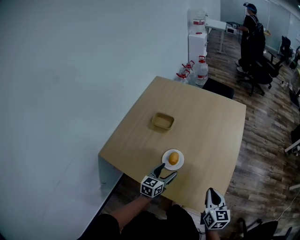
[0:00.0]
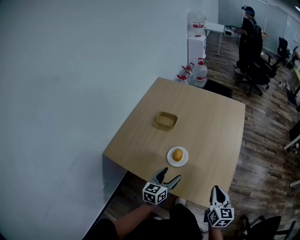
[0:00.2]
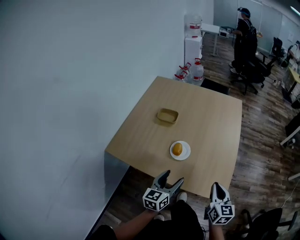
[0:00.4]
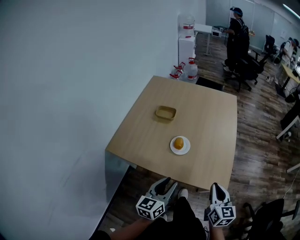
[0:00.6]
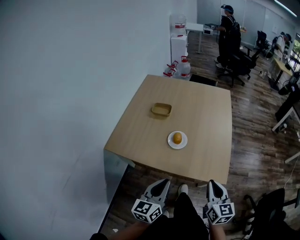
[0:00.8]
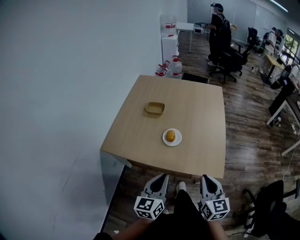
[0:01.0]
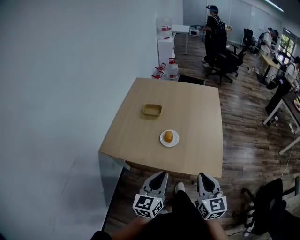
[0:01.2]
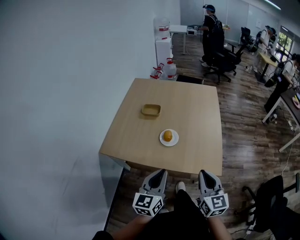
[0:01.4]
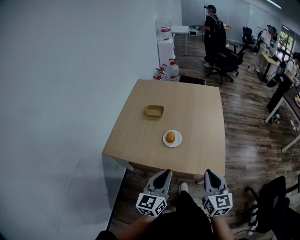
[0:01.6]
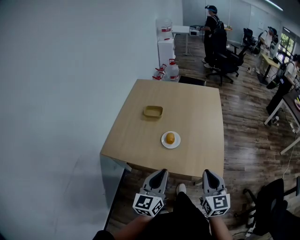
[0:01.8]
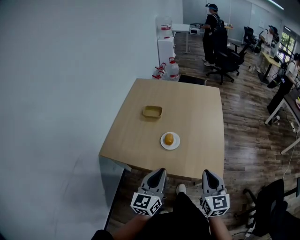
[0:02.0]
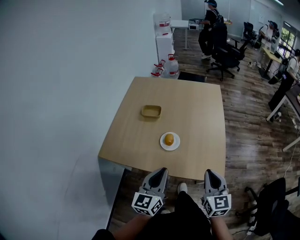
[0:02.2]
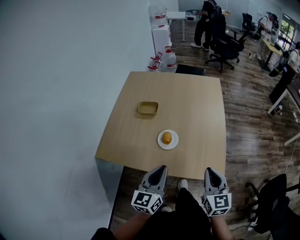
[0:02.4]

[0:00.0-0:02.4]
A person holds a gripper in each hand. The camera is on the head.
0:00.0 to 0:01.2: The left gripper shifts approximately 30 cm backward and upward, and closes; the right gripper moves backward, upward and to the left, approximately 25 cm.
0:01.2 to 0:02.4: Both grippers travel together forward, approximately 10 cm.

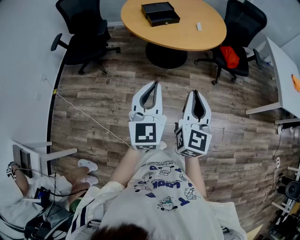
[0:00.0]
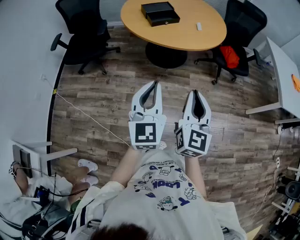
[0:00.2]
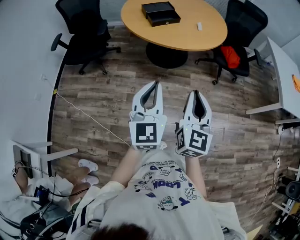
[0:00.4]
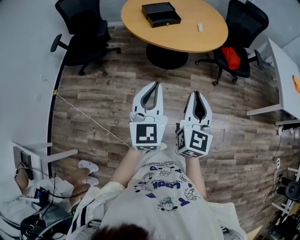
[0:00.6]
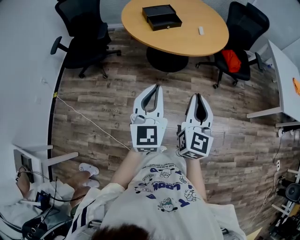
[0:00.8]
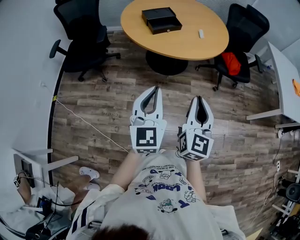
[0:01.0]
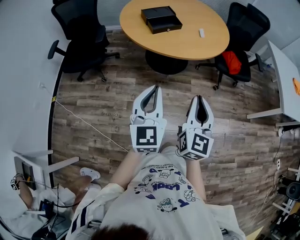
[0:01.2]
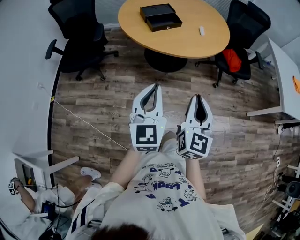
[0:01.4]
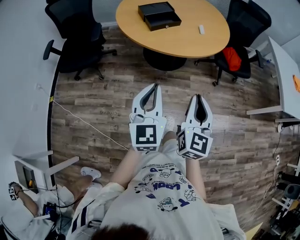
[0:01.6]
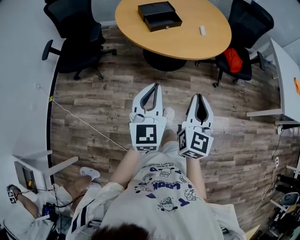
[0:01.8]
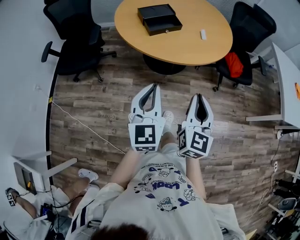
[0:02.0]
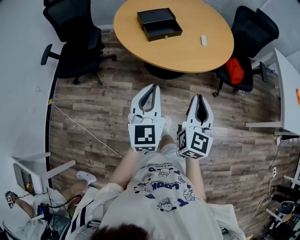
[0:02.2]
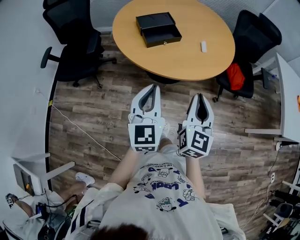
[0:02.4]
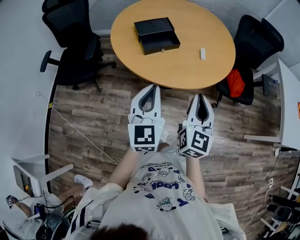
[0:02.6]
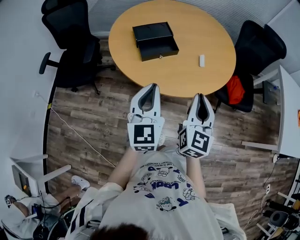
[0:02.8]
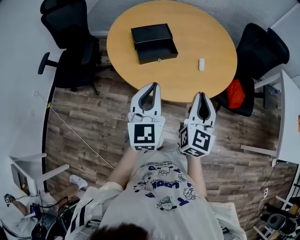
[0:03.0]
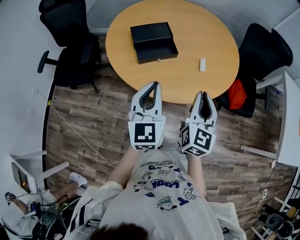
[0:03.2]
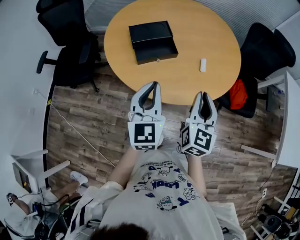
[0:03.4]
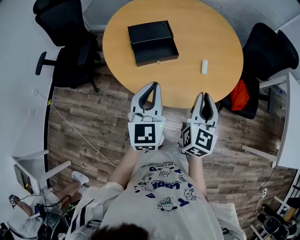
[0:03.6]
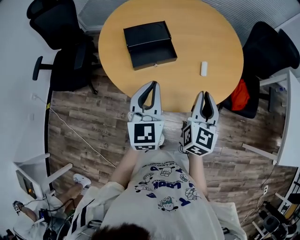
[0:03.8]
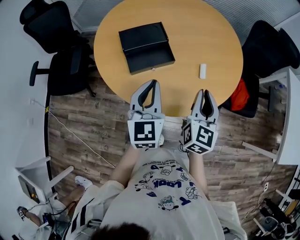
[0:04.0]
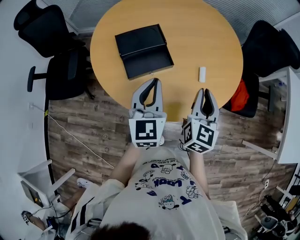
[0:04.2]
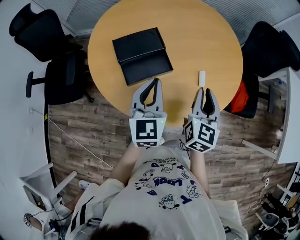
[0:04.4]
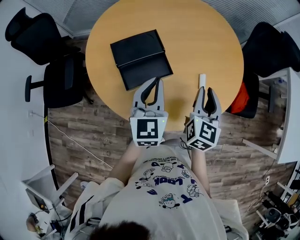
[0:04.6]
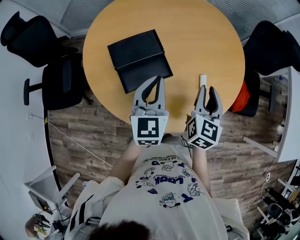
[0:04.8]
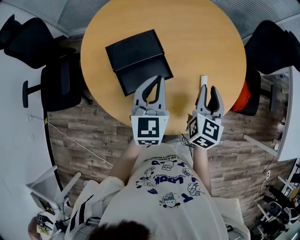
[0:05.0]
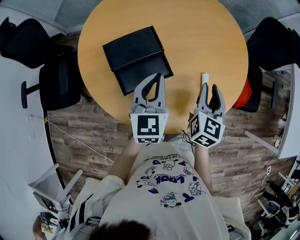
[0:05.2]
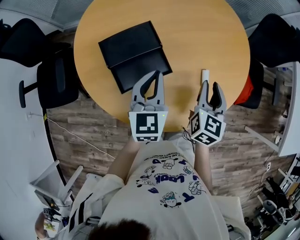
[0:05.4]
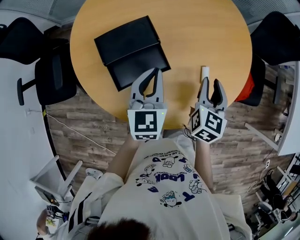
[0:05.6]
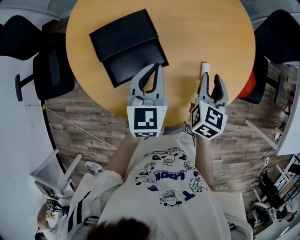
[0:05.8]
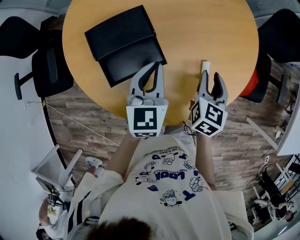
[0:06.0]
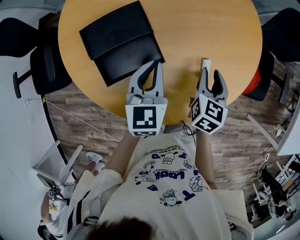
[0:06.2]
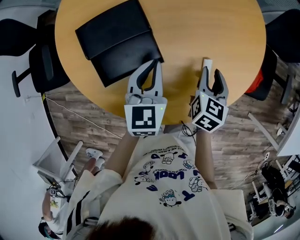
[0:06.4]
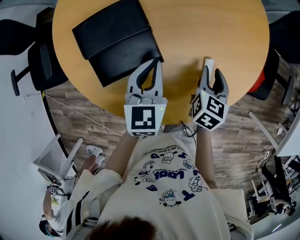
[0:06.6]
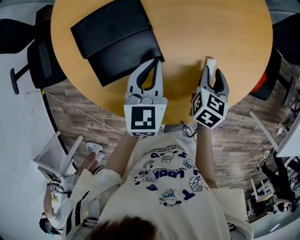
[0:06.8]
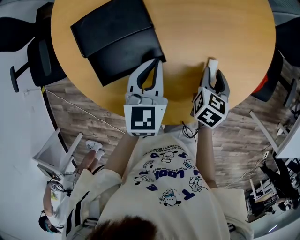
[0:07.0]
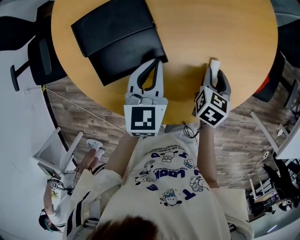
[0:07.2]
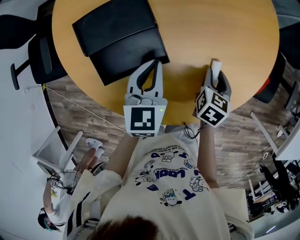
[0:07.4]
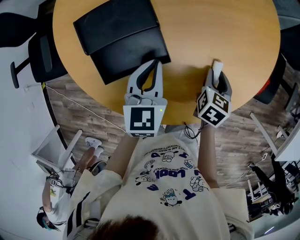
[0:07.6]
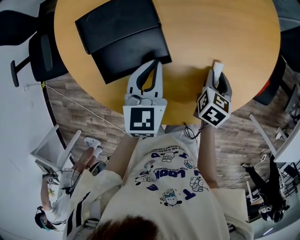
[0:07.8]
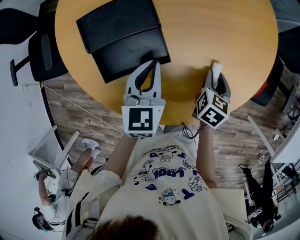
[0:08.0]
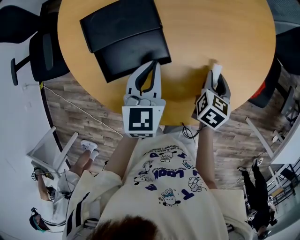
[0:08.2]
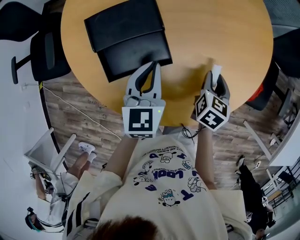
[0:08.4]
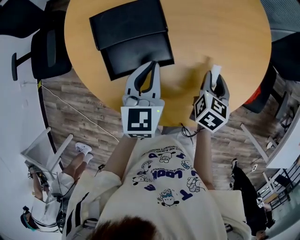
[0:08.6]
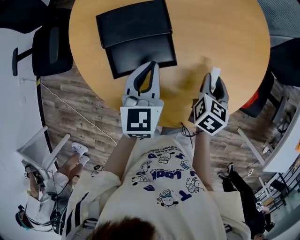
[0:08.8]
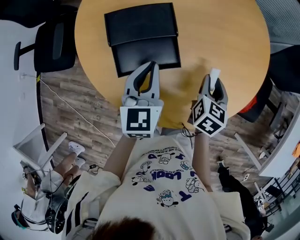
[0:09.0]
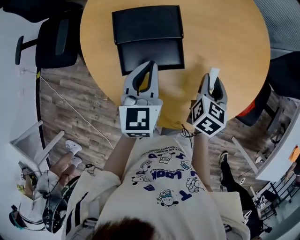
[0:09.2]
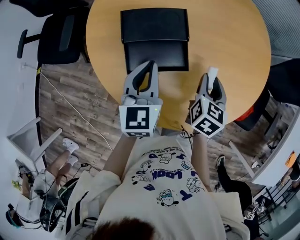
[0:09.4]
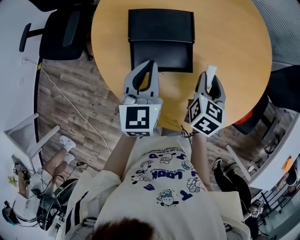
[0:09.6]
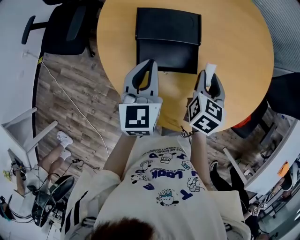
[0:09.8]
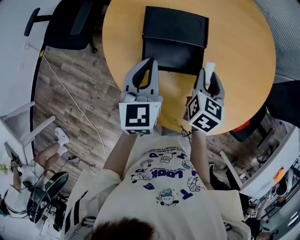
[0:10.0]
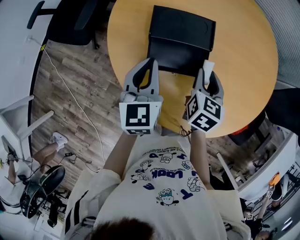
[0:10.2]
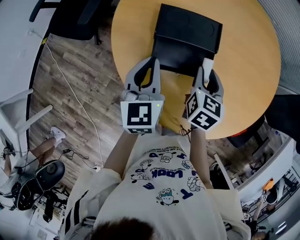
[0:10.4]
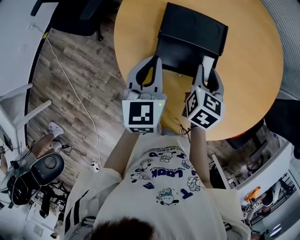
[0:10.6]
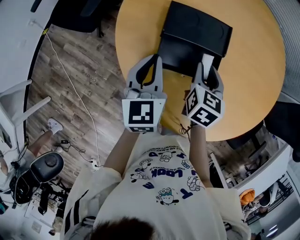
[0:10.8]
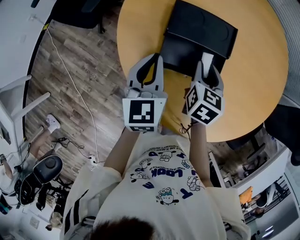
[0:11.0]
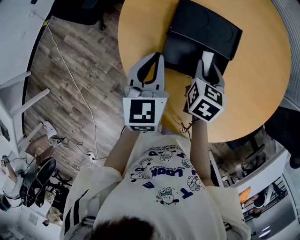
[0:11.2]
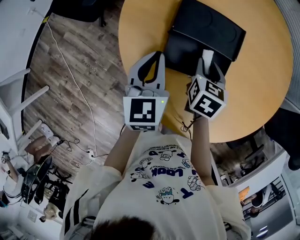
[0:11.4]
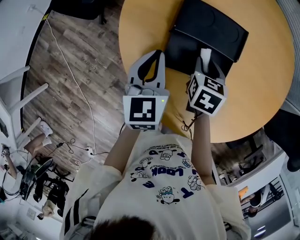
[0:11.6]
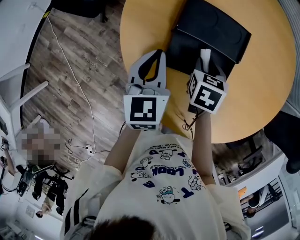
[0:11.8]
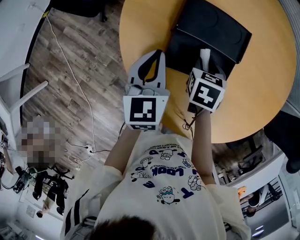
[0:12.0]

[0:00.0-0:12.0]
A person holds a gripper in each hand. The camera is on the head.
0:00.0 to 0:01.6: Both grippers travel together forward, about 10 cm.
0:01.6 to 0:03.0: The grippers both shift forward by some 30 cm.
0:03.0 to 0:04.4: Both grippers travel together forward, some 20 cm.
0:04.4 to 0:06.0: The right gripper goes about 15 cm downward and forward, and opens its fingers. Meanwhile the left gripper moves forward and downward, some 15 cm.
0:06.0 to 0:07.6: The left gripper goes roughly 5 cm downward; the right gripper moves downward, approximately 10 cm.
0:07.6 to 0:09.0: The two grippers go roughly 10 cm upward and to the left.
0:09.0 to 0:10.4: The grippers both shift to the left by approximately 15 cm. The left gripper rotates some 20 degrees. The right gripper changes its angle by some 20 degrees.
0:10.4 to 0:12.0: The right gripper shifts about 10 cm downward and to the left, and changes its angle by approximately 30 degrees. The left gripper heads downward, covering some 5 cm.

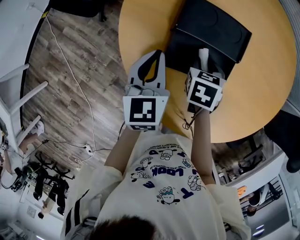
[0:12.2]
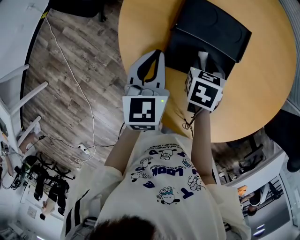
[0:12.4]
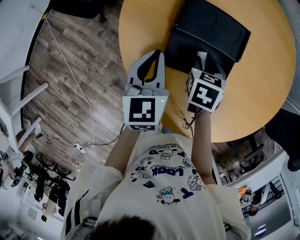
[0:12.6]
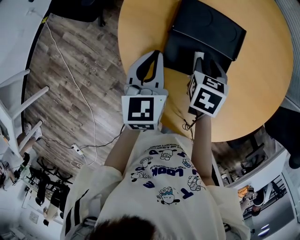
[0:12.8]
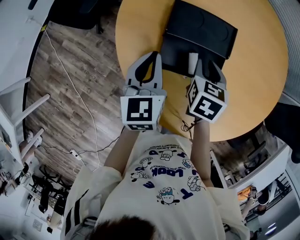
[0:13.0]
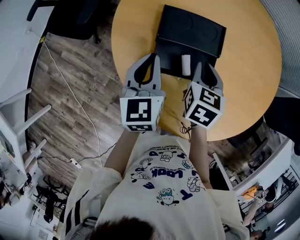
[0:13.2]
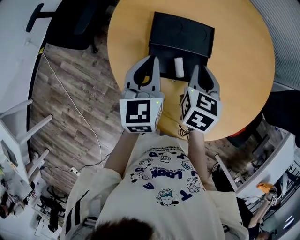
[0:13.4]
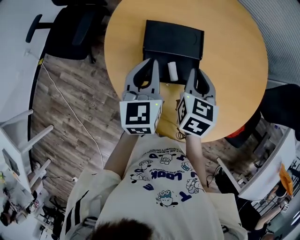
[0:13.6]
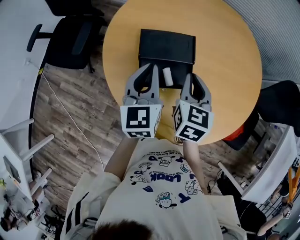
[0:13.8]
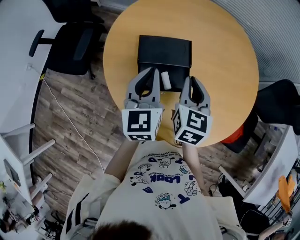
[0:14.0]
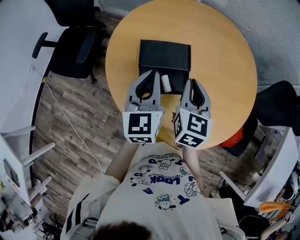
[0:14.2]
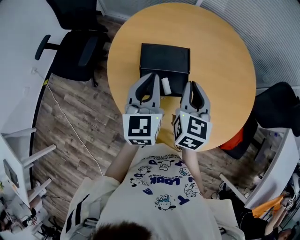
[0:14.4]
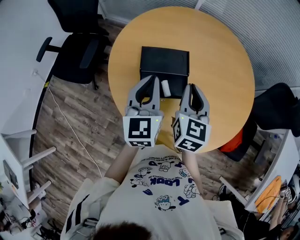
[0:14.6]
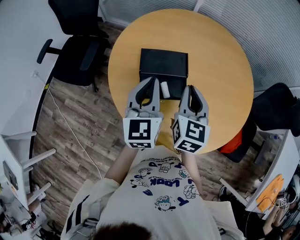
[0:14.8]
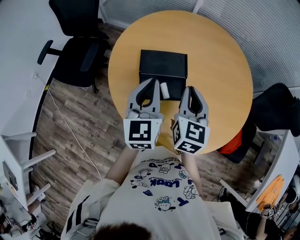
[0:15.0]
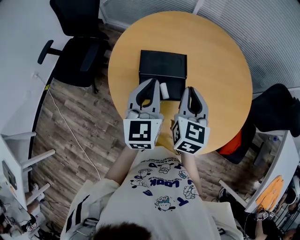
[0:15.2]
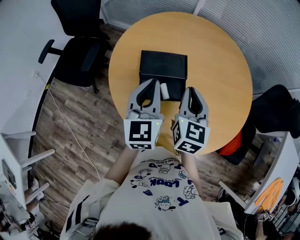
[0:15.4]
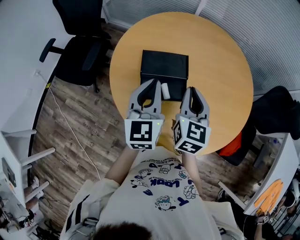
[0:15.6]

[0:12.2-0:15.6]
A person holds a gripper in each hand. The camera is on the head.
0:12.2 to 0:13.8: The left gripper shifts roughly 15 cm upward and to the right. The right gripper goes about 20 cm upward, points its fingers roughly 30 degrees further upward, and closes its fingers.
0:13.8 to 0:15.6: The two grippers go about 5 cm upward.

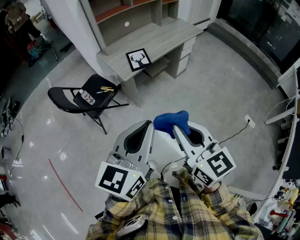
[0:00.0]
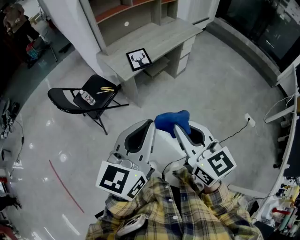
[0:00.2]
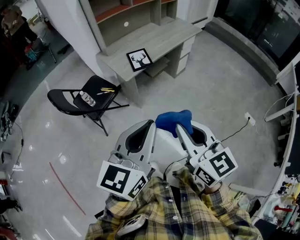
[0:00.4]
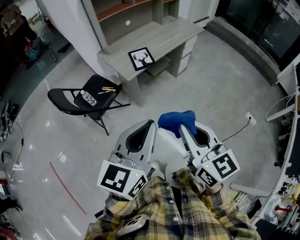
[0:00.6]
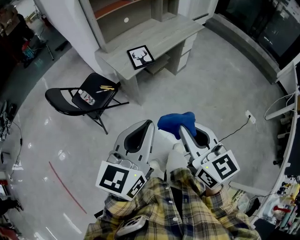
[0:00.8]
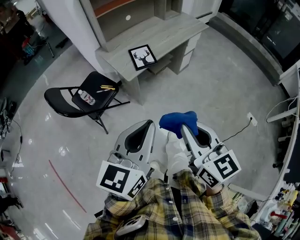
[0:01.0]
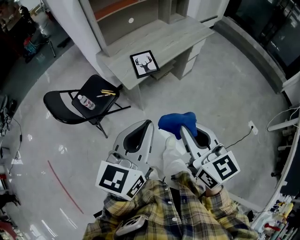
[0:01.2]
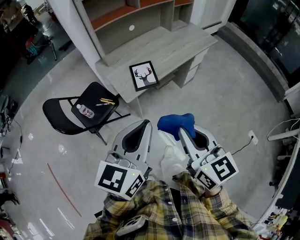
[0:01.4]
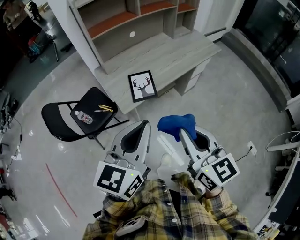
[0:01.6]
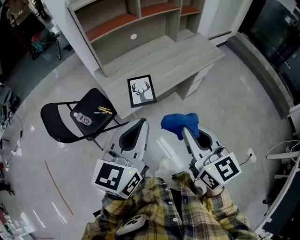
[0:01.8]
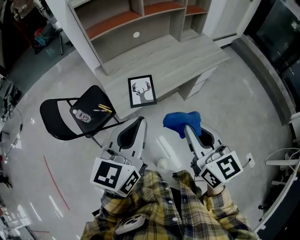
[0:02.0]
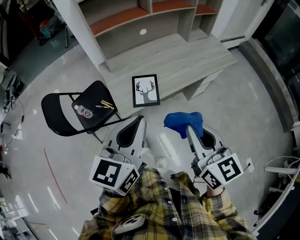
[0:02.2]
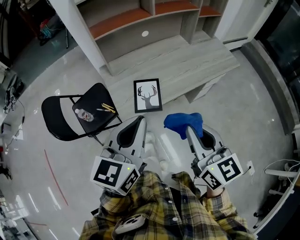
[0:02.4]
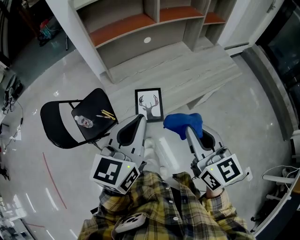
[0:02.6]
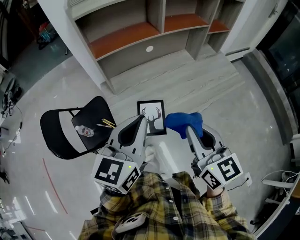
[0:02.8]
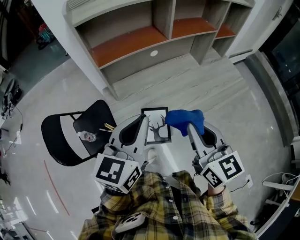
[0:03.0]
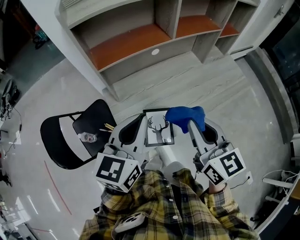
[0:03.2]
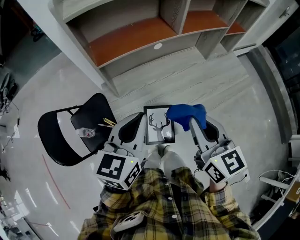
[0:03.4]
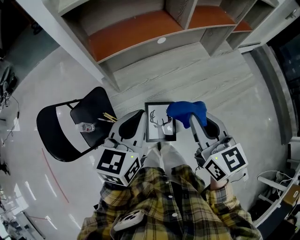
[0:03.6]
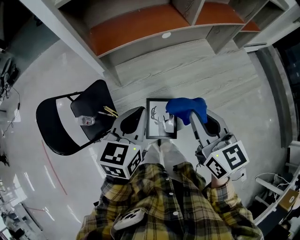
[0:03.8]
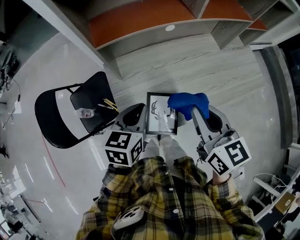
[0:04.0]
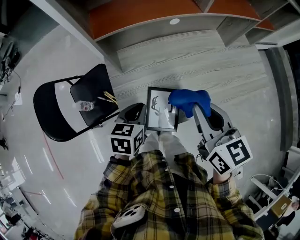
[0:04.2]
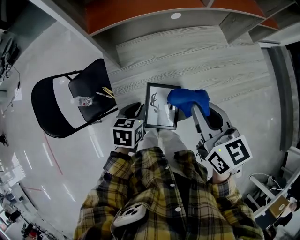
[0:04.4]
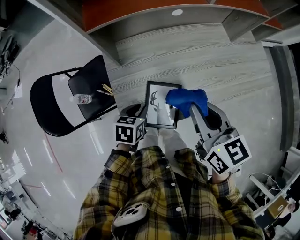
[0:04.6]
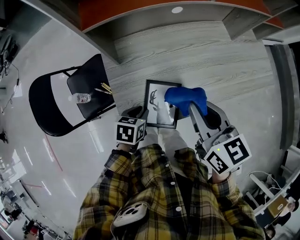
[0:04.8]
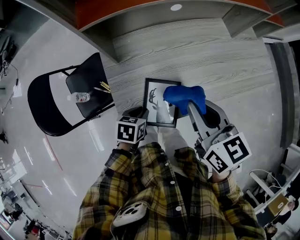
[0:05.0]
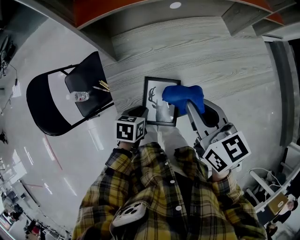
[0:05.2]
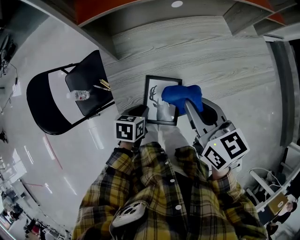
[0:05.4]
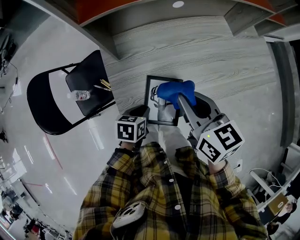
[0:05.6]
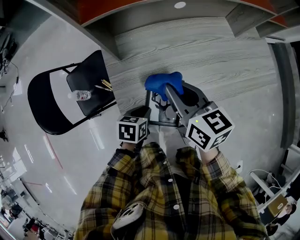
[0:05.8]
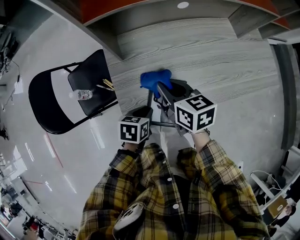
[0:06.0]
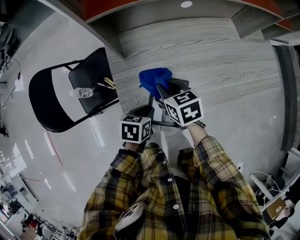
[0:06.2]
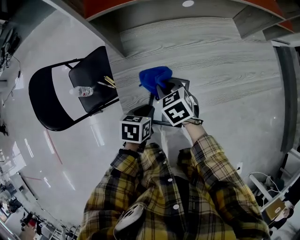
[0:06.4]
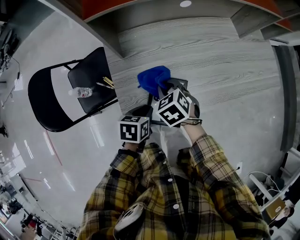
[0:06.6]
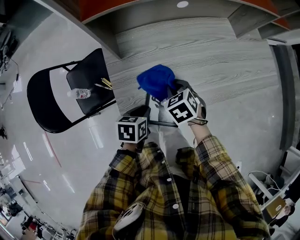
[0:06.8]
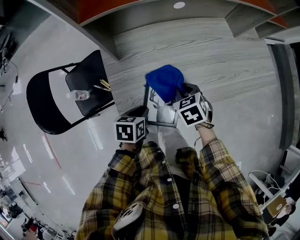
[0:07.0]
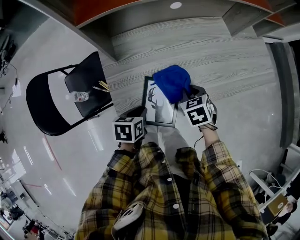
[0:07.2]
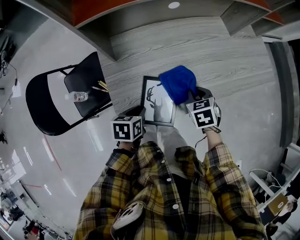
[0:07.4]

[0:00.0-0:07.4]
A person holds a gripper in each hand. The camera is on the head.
0:00.0 to 0:01.4: Both grippers travel together forward, approximately 20 cm.
0:01.4 to 0:03.0: The grippers both shift forward by about 35 cm.
0:03.0 to 0:04.4: The right gripper goes about 15 cm downward and forward, while the left gripper travels downward by approximately 30 cm, and points its fingers some 40 degrees further downward.
0:04.4 to 0:06.0: The left gripper is displaced downward by approximately 5 cm, while the right gripper shifts about 20 cm downward and to the left.
0:06.0 to 0:07.4: The right gripper shifts about 20 cm to the right and downward, and changes its angle by about 40 degrees.
